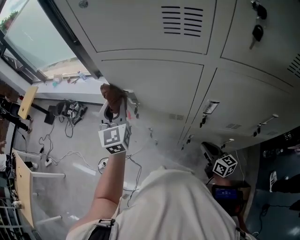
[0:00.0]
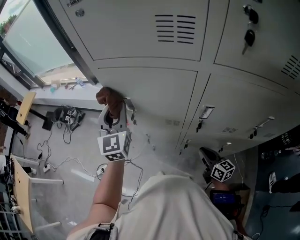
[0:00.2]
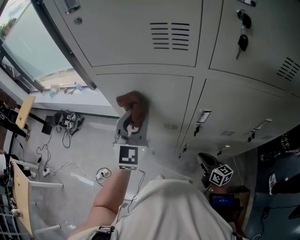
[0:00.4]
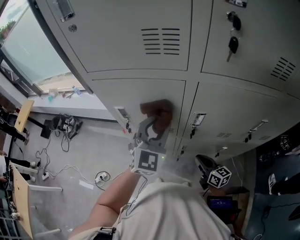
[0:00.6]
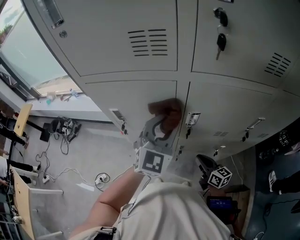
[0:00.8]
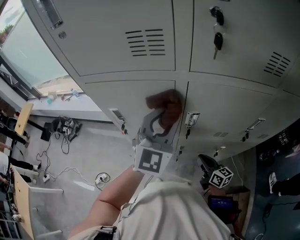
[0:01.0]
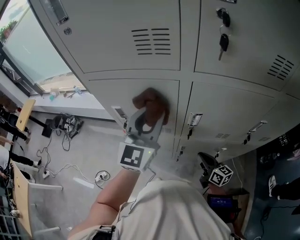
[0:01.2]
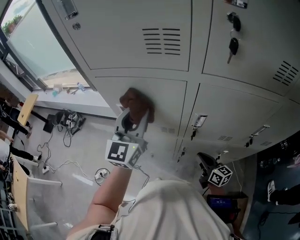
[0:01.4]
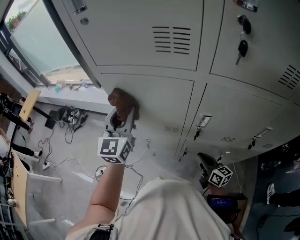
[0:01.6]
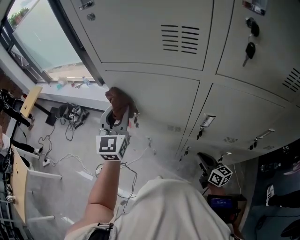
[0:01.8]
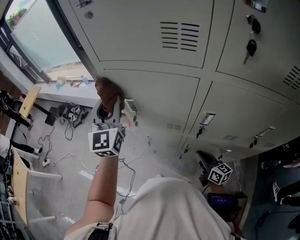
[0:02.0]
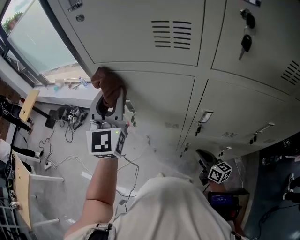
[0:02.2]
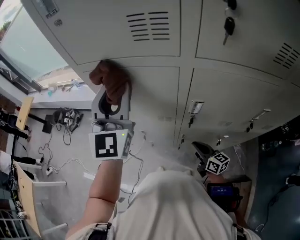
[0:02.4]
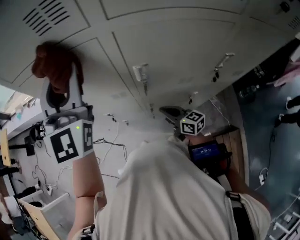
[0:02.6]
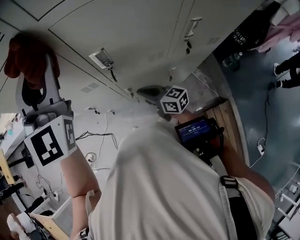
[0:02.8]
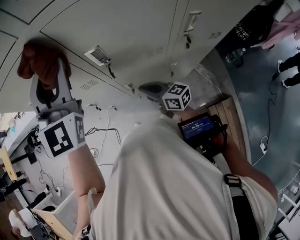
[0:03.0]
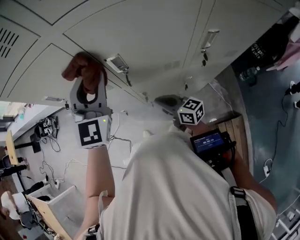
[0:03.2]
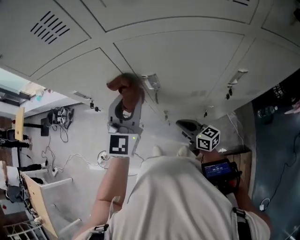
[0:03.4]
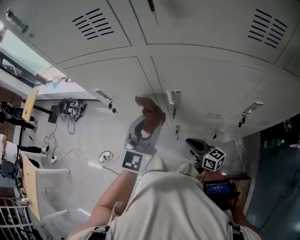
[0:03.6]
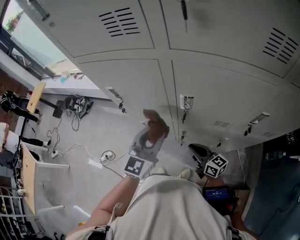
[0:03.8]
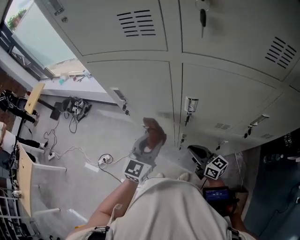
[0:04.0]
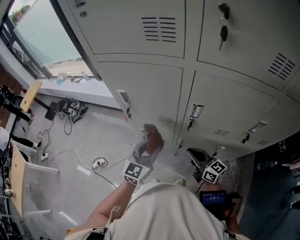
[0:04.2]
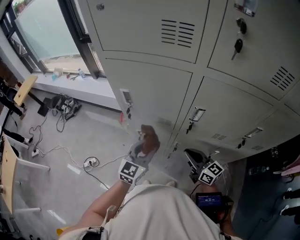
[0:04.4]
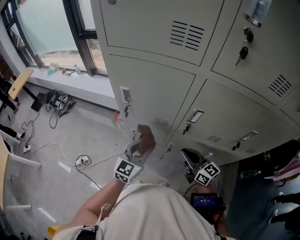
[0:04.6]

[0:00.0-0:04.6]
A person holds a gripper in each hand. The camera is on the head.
0:00.0 to 0:01.6: The left gripper reaches some 25 cm to the right, then returns.
0:01.6 to 0:03.0: The left gripper goes roughly 20 cm to the right, and turns by about 20 degrees.
0:03.0 to 0:04.6: The right gripper moves upward, some 5 cm. Meanwhile the left gripper goes roughly 25 cm downward and to the left, and changes its angle by roughly 30 degrees.

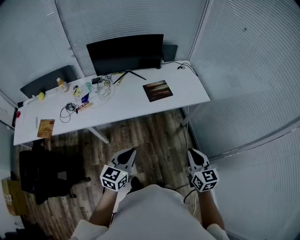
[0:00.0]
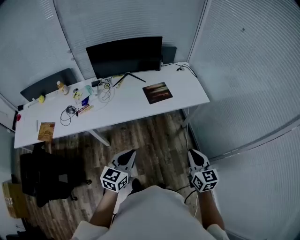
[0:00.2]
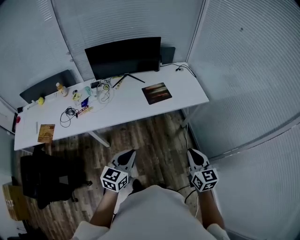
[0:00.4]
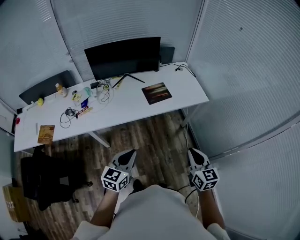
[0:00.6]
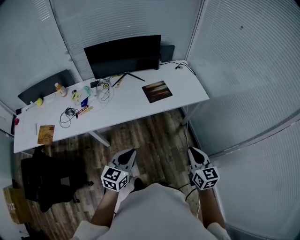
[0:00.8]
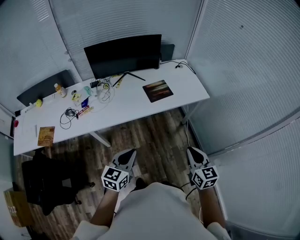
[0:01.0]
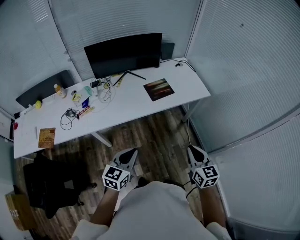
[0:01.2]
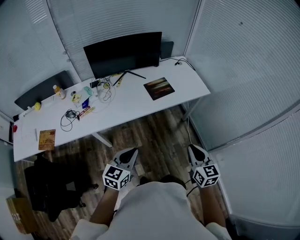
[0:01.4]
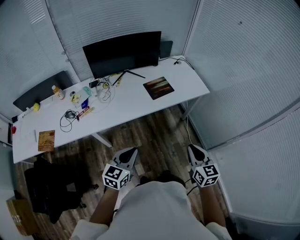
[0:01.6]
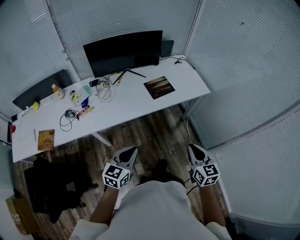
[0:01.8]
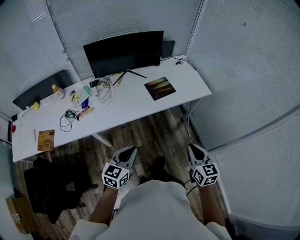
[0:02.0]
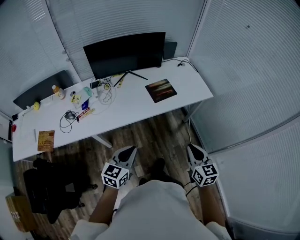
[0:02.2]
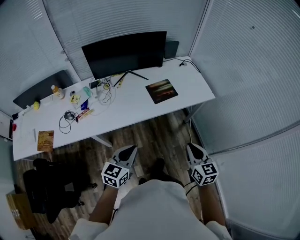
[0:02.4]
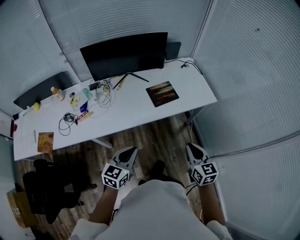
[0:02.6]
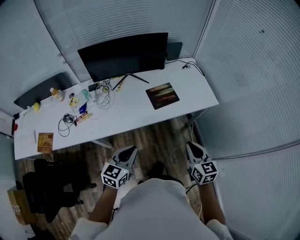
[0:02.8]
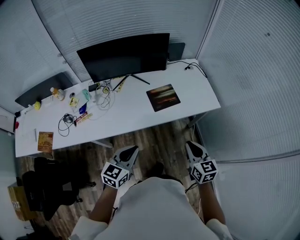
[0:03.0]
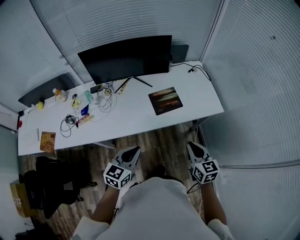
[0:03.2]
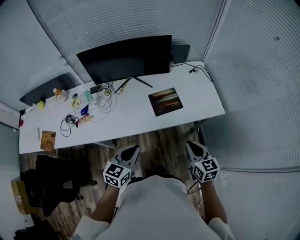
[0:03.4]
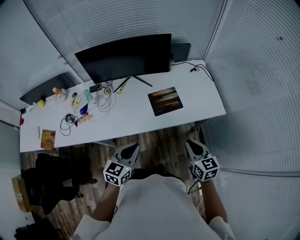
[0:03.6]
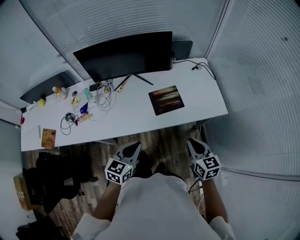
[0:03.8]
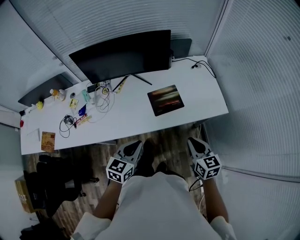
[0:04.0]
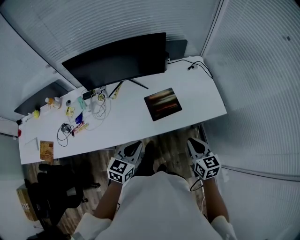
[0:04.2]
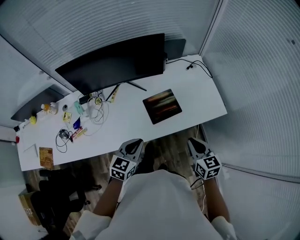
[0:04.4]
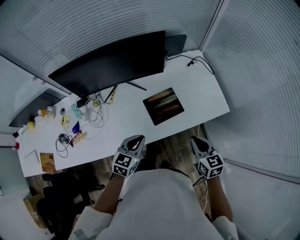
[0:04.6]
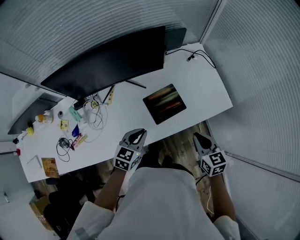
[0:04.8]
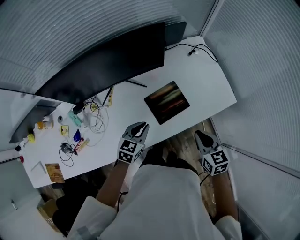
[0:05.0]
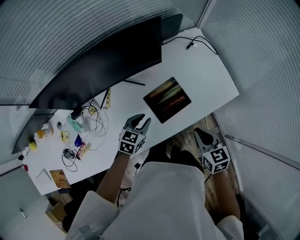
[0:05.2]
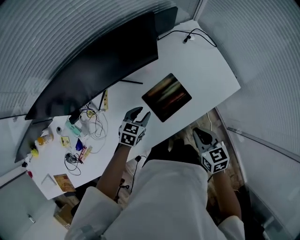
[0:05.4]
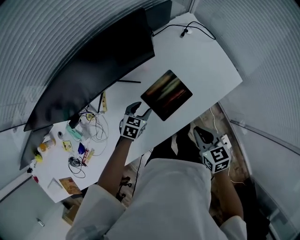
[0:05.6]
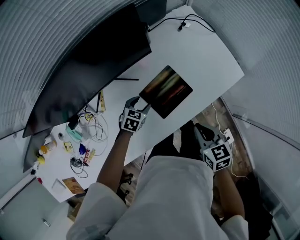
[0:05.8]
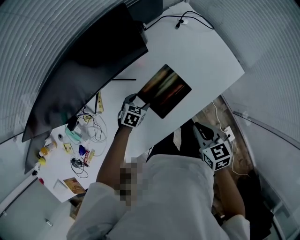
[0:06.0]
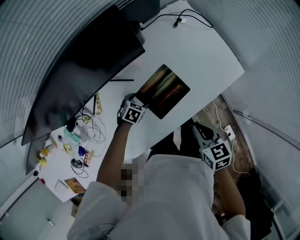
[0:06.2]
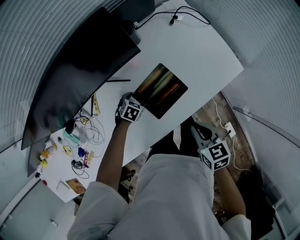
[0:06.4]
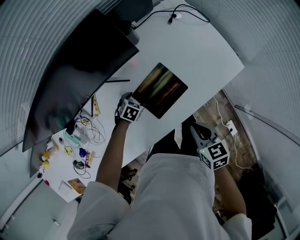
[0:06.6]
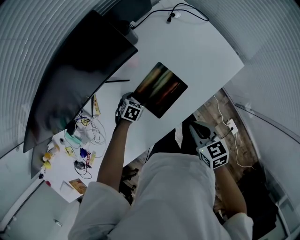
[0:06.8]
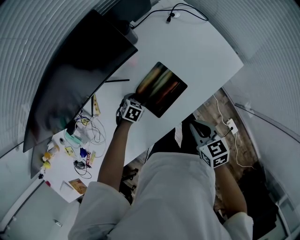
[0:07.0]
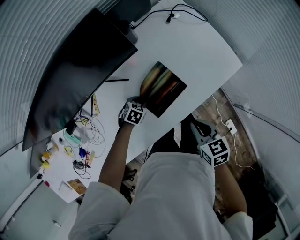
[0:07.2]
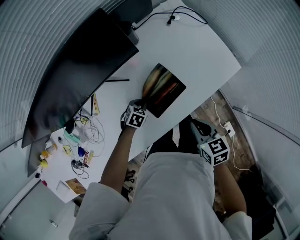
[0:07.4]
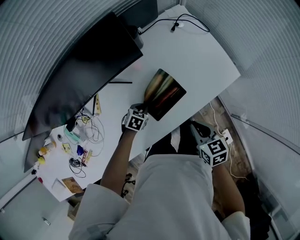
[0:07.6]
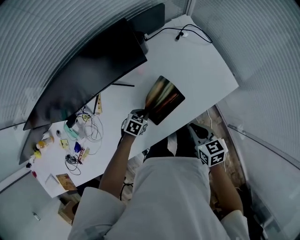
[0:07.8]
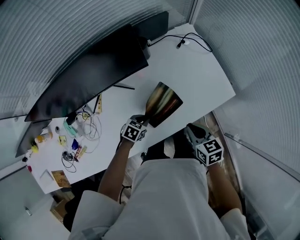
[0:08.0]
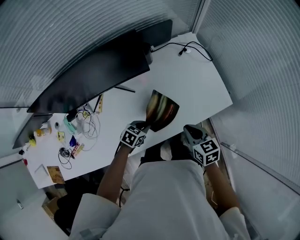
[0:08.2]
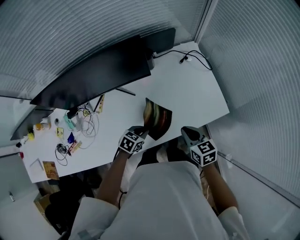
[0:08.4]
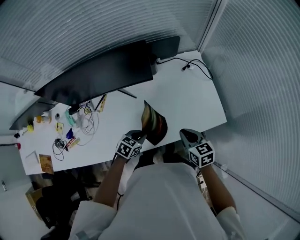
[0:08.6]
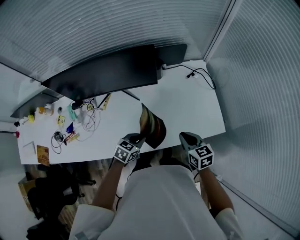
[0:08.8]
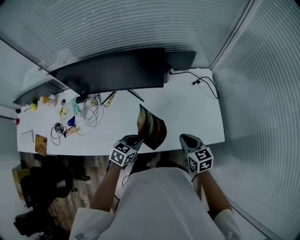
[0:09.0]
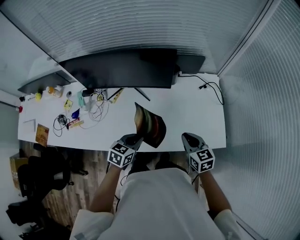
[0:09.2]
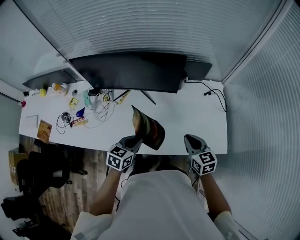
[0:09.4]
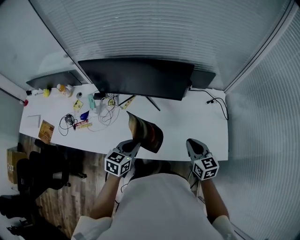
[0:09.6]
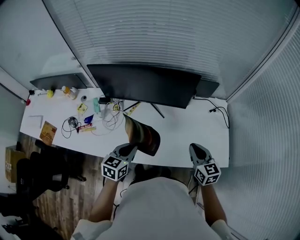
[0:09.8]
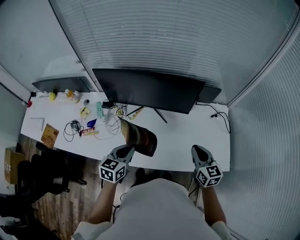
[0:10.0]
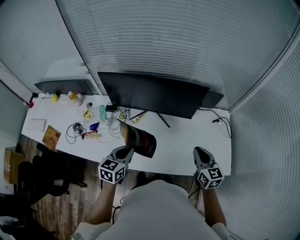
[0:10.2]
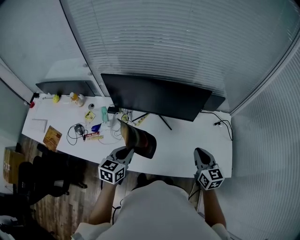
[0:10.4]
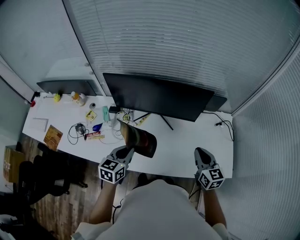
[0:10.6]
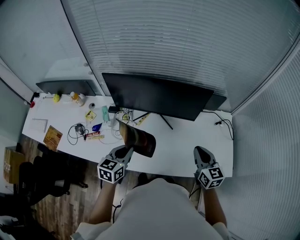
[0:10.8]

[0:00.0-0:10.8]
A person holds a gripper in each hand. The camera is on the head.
0:00.0 to 0:01.6: The grippers both shift to the left by some 10 cm.
0:01.6 to 0:03.0: The grippers both shift forward by some 15 cm.
0:03.0 to 0:04.6: The two grippers go some 20 cm forward.
0:04.6 to 0:06.2: The right gripper travels downward by roughly 10 cm. The left gripper moves downward and forward, about 35 cm, tilts its fingers roughly 40 degrees downward, and opens.
0:06.2 to 0:07.8: The left gripper changes place by about 5 cm, and closes.
0:07.8 to 0:09.2: The left gripper heads upward, covering roughly 20 cm, and changes its angle by about 40 degrees, while the right gripper changes place by approximately 10 cm, and turns by approximately 30 degrees.
0:09.2 to 0:10.8: The left gripper travels to the left and upward by about 20 cm, and swivels approximately 20 degrees; the right gripper travels upward and to the left by some 15 cm.

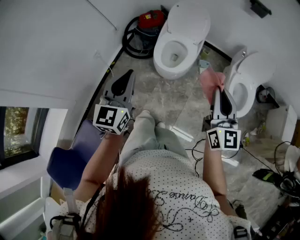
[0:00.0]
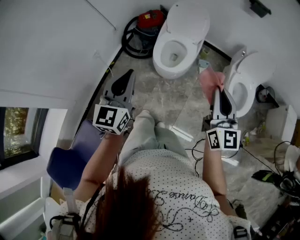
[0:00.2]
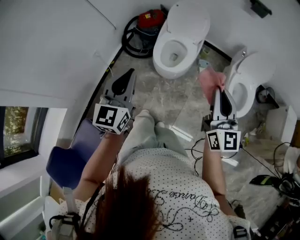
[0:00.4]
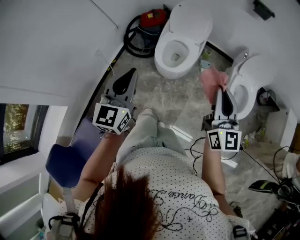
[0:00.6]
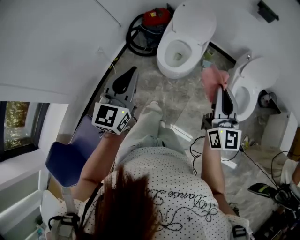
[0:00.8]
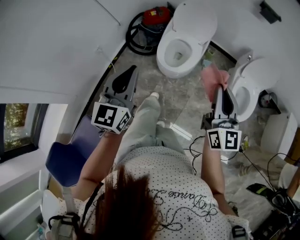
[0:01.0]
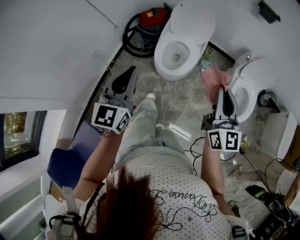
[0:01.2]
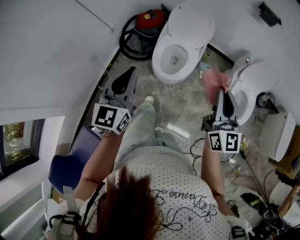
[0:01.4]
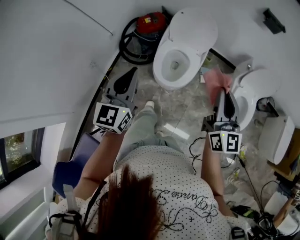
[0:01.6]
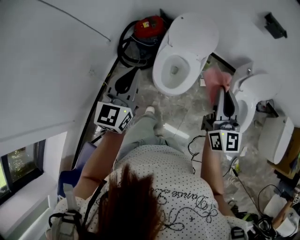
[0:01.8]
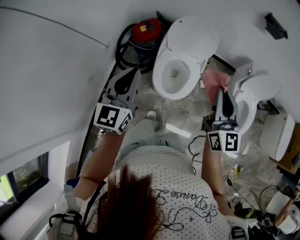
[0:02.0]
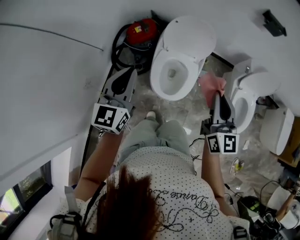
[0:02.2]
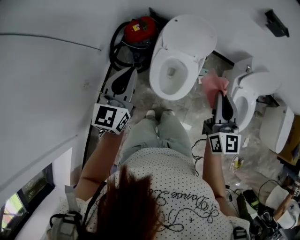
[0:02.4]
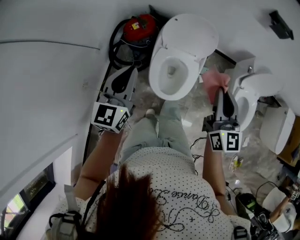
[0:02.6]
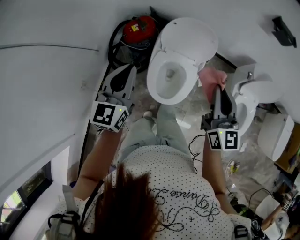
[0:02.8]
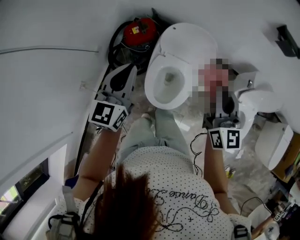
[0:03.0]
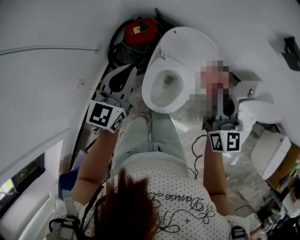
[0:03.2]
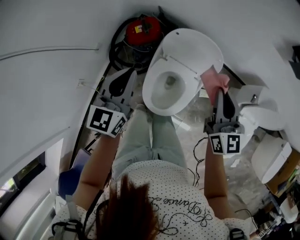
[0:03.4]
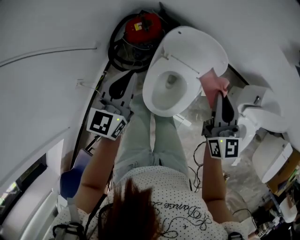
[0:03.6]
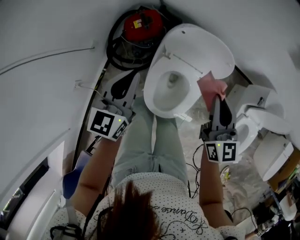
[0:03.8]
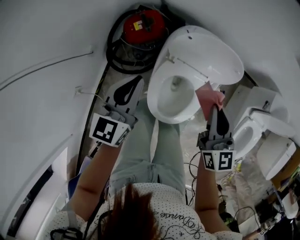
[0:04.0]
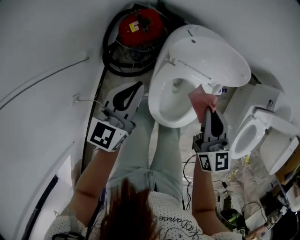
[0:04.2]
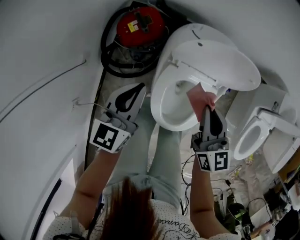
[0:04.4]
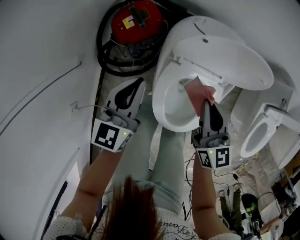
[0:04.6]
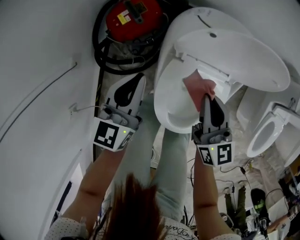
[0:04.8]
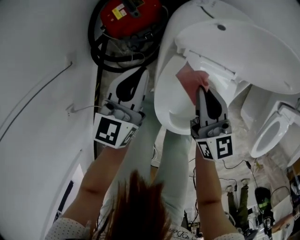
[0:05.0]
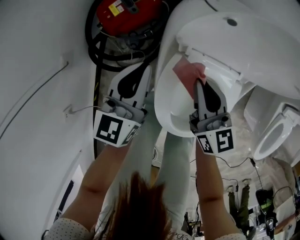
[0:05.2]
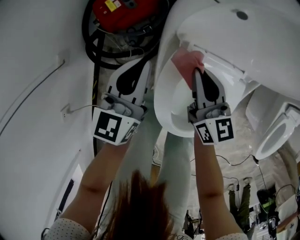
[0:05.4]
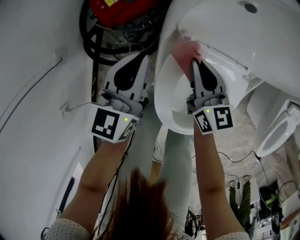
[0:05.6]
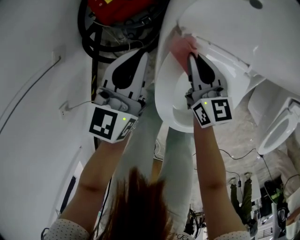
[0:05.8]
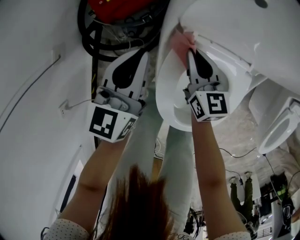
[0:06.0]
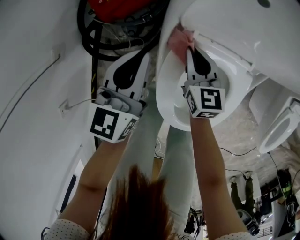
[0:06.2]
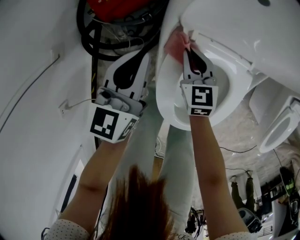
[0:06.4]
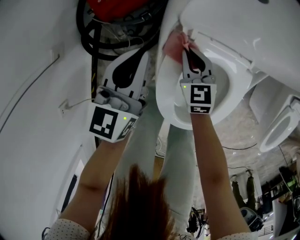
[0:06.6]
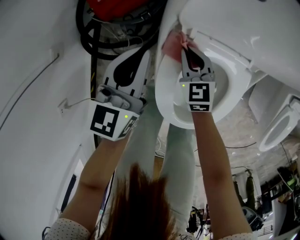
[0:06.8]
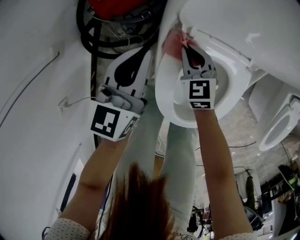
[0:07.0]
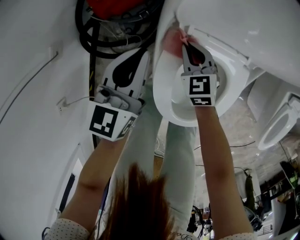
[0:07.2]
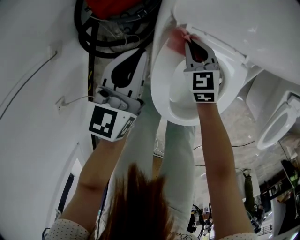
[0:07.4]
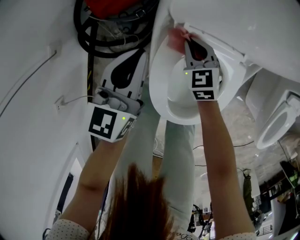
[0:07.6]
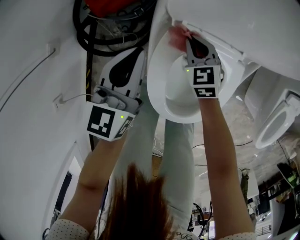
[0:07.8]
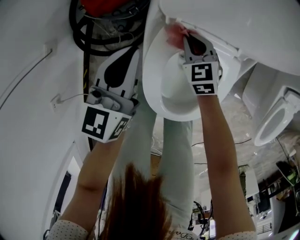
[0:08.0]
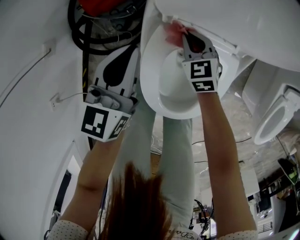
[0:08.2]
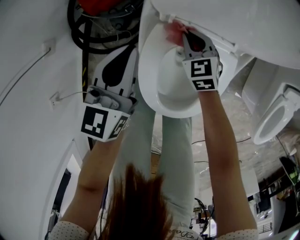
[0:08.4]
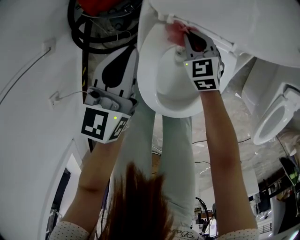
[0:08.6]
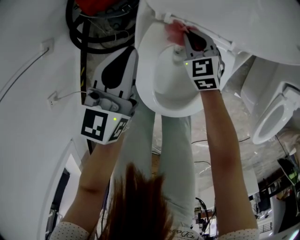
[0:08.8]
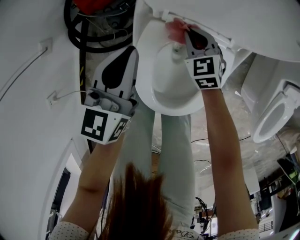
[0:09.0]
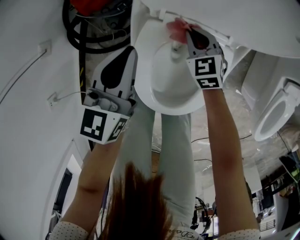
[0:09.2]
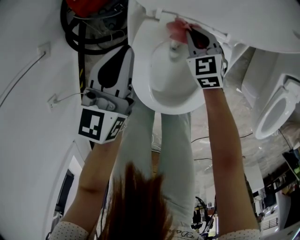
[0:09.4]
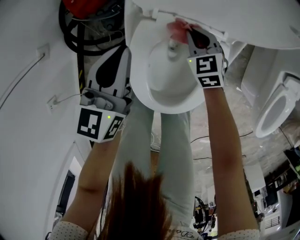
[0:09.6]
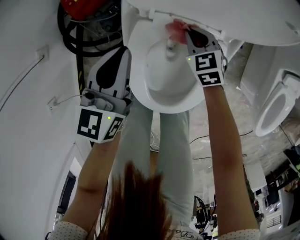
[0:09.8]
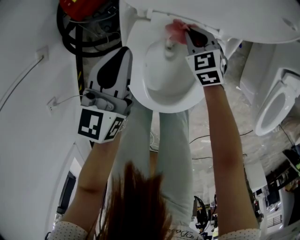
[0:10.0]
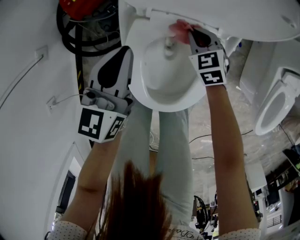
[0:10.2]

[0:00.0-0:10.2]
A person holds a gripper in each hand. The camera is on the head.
0:00.0 to 0:01.4: Both grippers move forward, about 10 cm.
0:01.4 to 0:03.0: The grippers both shift forward by roughly 35 cm.
0:03.0 to 0:04.4: The left gripper moves downward and forward, roughly 30 cm. Meanwhile the right gripper shifts approximately 30 cm downward, forward and to the left.
0:04.4 to 0:05.8: Both grippers move downward, approximately 25 cm.
0:05.8 to 0:07.2: The right gripper is displaced downward by some 5 cm, and changes its angle by roughly 40 degrees.
0:07.2 to 0:08.8: The left gripper moves about 5 cm. The right gripper moves to the right, approximately 5 cm.
0:08.8 to 0:10.2: The right gripper goes about 5 cm to the right.
